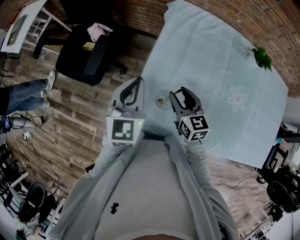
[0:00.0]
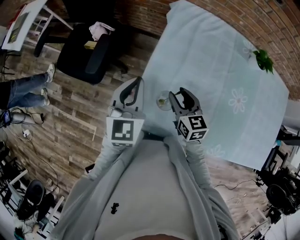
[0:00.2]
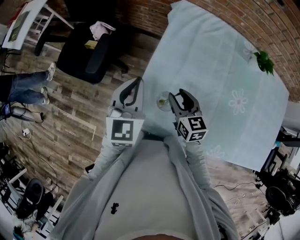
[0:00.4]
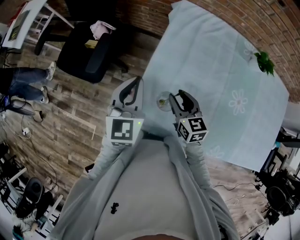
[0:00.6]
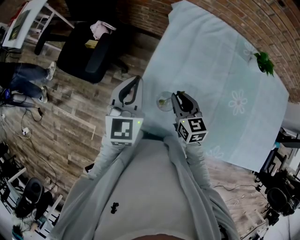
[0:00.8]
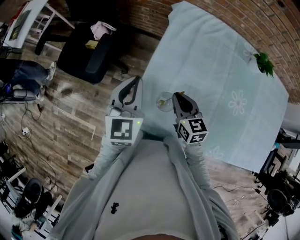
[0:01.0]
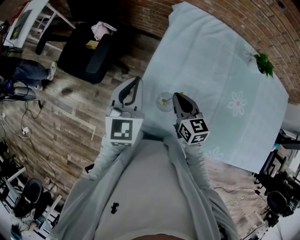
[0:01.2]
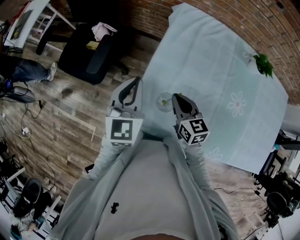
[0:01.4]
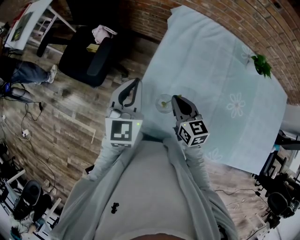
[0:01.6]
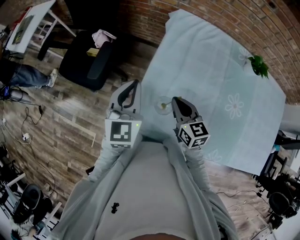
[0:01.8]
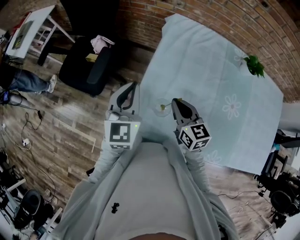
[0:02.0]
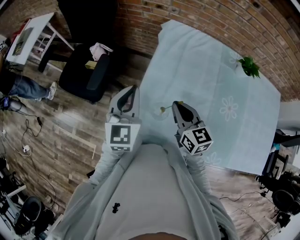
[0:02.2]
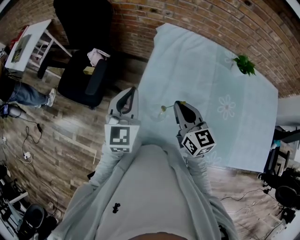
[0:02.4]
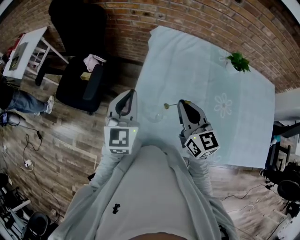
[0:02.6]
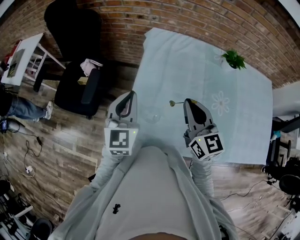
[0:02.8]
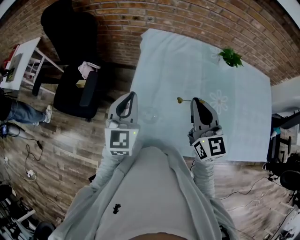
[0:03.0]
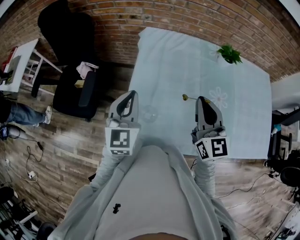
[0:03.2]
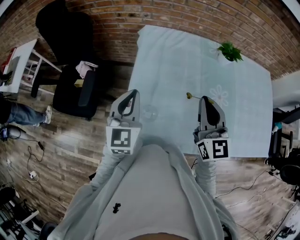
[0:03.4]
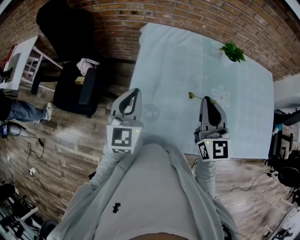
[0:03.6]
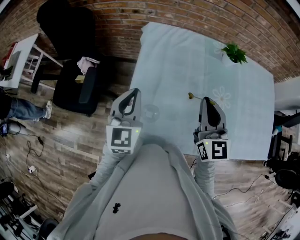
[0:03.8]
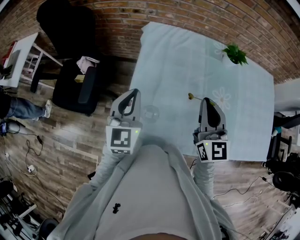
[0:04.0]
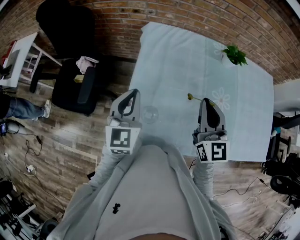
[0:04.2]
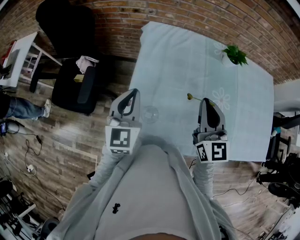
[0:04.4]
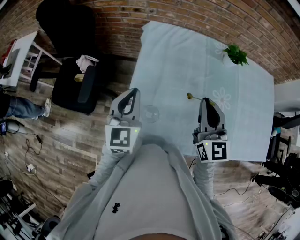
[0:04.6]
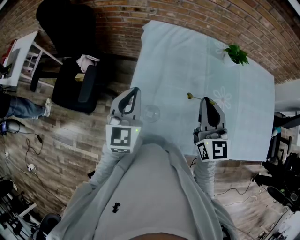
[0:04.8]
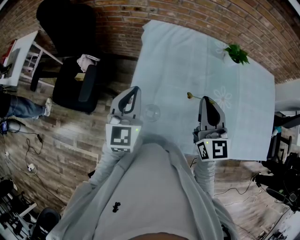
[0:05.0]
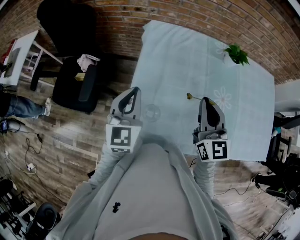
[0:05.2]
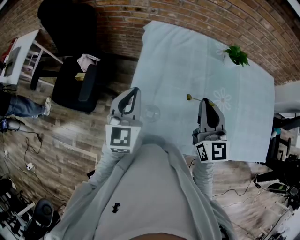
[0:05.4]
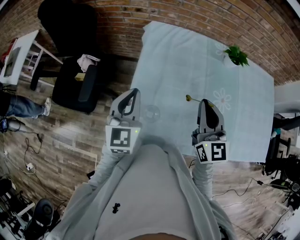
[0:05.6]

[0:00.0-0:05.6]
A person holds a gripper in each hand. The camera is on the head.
0:00.0 to 0:01.4: The right gripper closes.
0:01.4 to 0:02.8: The left gripper ends up approximately 5 cm from where it was. The right gripper moves upward and to the right, approximately 20 cm, and changes its angle by some 30 degrees.
0:02.8 to 0:04.2: The right gripper shifts some 5 cm to the right.
0:04.2 to 0:05.6: Neither gripper changes place.

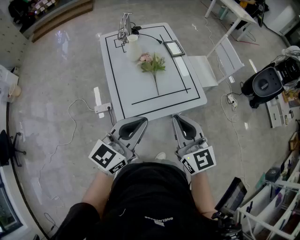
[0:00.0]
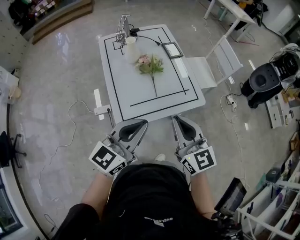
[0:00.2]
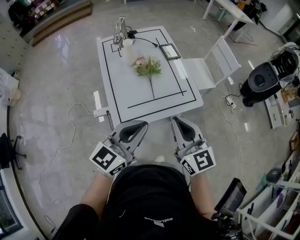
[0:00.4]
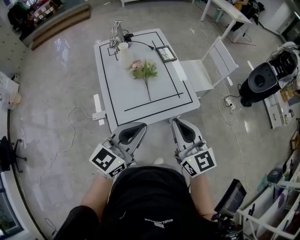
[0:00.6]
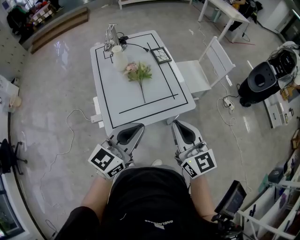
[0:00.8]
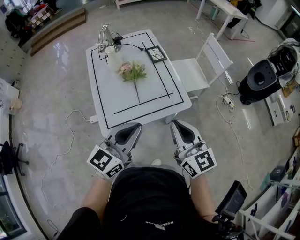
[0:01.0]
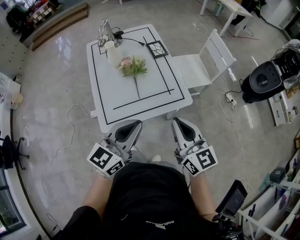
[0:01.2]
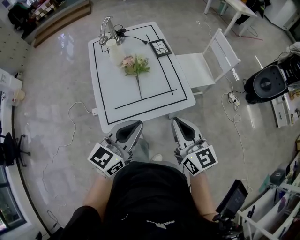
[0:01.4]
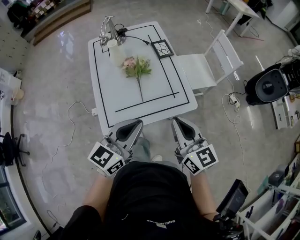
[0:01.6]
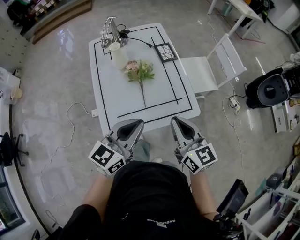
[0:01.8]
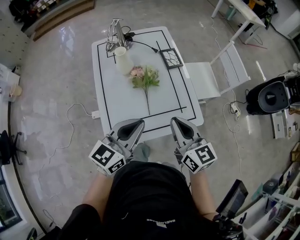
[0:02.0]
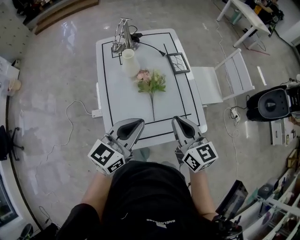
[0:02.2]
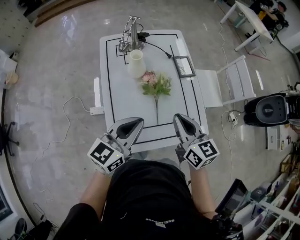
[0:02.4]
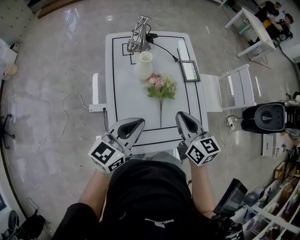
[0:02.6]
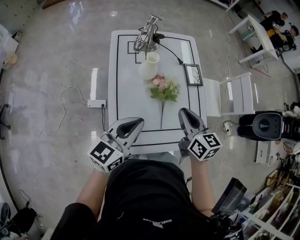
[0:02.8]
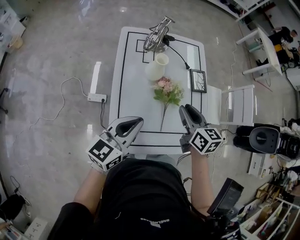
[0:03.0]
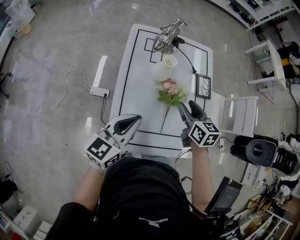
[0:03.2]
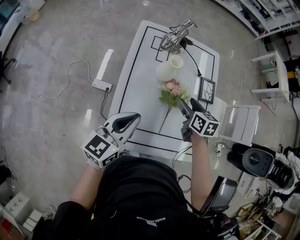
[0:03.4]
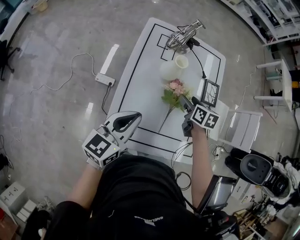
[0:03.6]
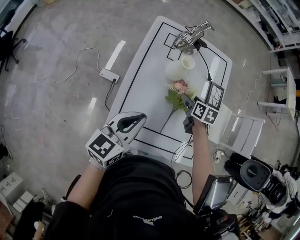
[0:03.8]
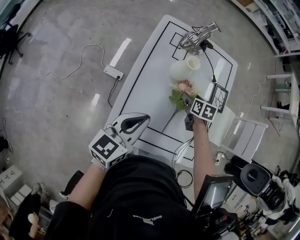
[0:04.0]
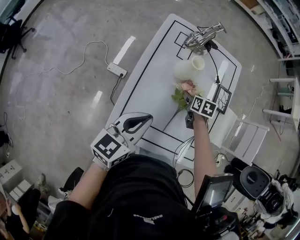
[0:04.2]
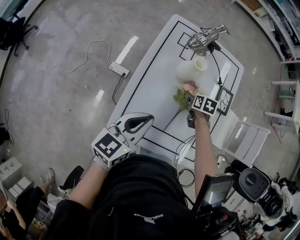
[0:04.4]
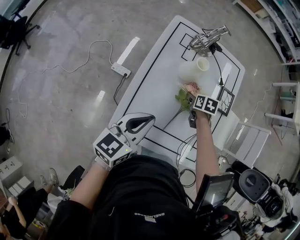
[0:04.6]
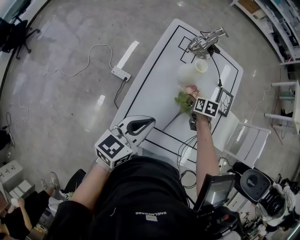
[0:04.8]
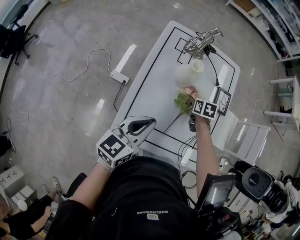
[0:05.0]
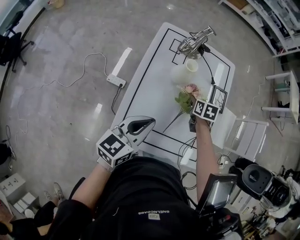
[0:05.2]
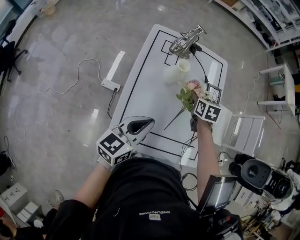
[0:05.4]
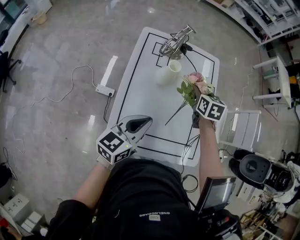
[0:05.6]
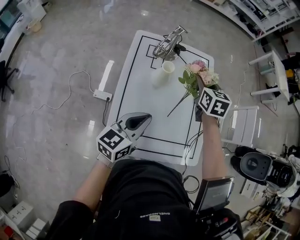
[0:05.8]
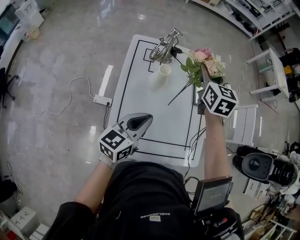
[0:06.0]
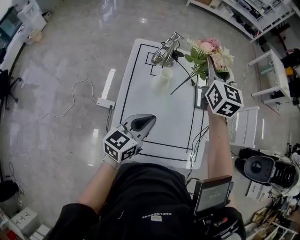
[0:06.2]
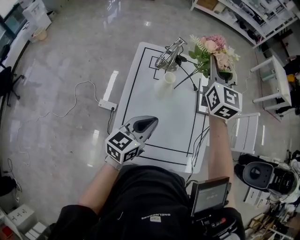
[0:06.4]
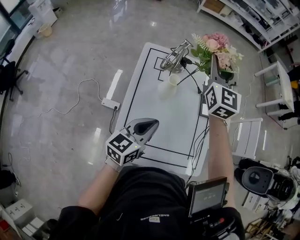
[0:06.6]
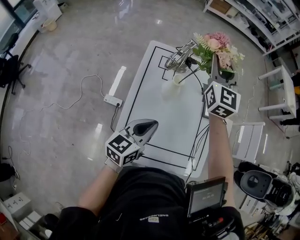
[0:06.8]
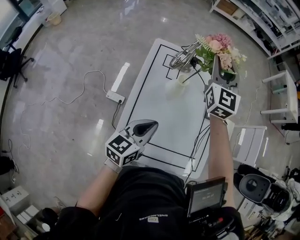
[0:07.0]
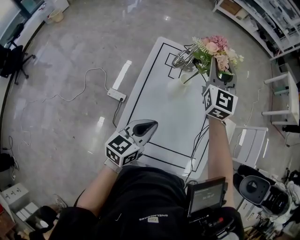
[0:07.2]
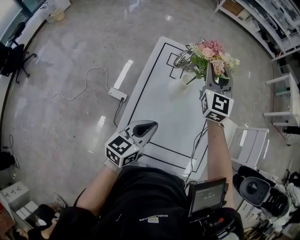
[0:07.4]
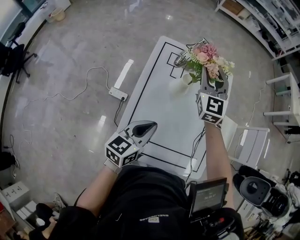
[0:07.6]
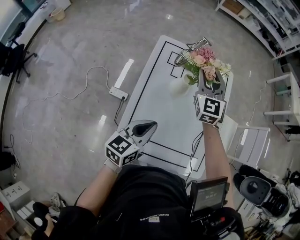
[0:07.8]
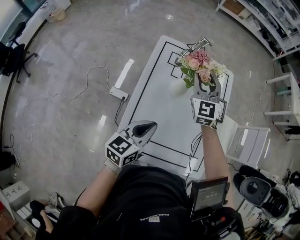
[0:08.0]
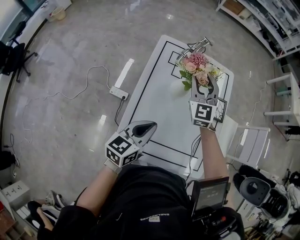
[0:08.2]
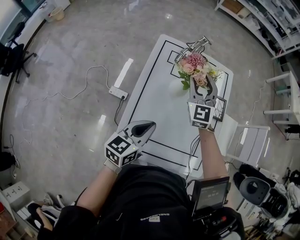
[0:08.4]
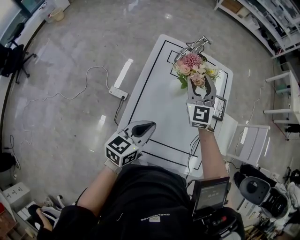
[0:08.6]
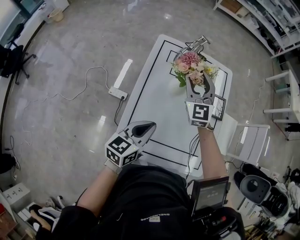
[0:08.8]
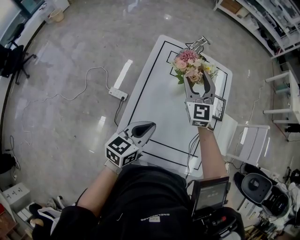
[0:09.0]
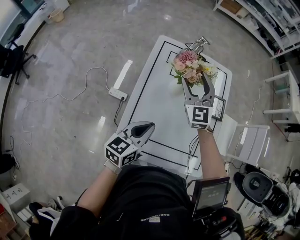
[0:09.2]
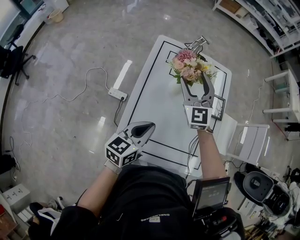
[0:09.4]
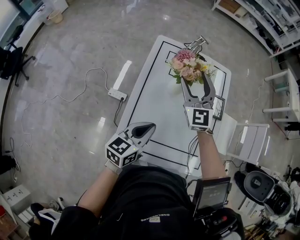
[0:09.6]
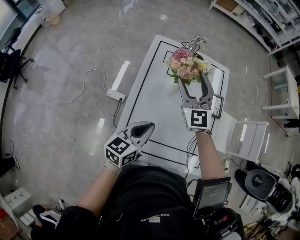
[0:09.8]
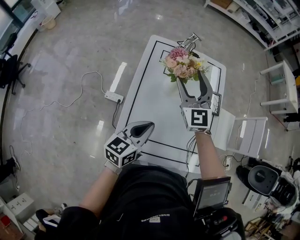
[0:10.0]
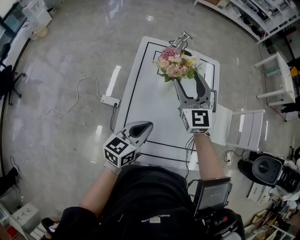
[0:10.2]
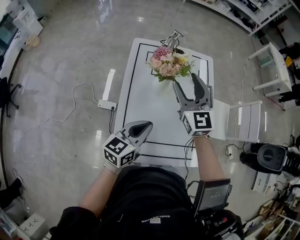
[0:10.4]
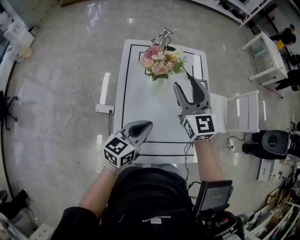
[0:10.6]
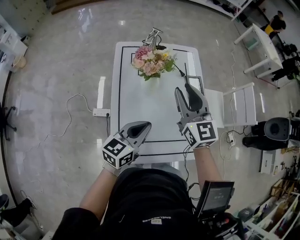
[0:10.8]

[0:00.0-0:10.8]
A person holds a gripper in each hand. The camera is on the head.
0:00.0 to 0:01.6: Both grippers travel together to the right and forward, approximately 15 cm.
0:01.6 to 0:03.0: The right gripper is displaced forward and to the left by some 30 cm, and swivels approximately 20 degrees. The left gripper is displaced to the left and forward by about 25 cm.
0:03.0 to 0:04.6: The right gripper goes approximately 25 cm downward and forward, tips its fingers downward by roughly 40 degrees, and opens up.
0:04.6 to 0:06.2: The right gripper travels upward by approximately 40 cm, and angles its fingers upward, by about 50 degrees. Meanwhile the left gripper shifts roughly 5 cm forward.
0:06.2 to 0:07.8: The right gripper heads downward and to the left, covering some 15 cm; the left gripper shifts by approximately 5 cm.
0:07.8 to 0:09.2: The right gripper moves about 5 cm, and opens up.
0:09.2 to 0:10.8: The right gripper shifts some 15 cm backward, to the right and upward, changes its angle by roughly 20 degrees, and closes its fingers.

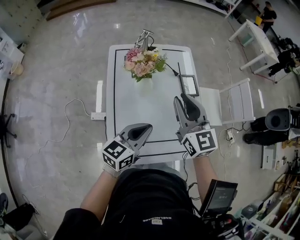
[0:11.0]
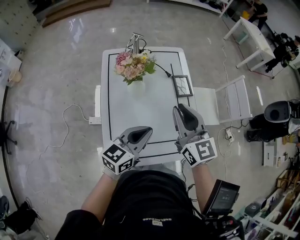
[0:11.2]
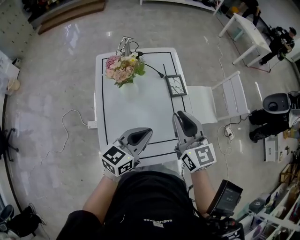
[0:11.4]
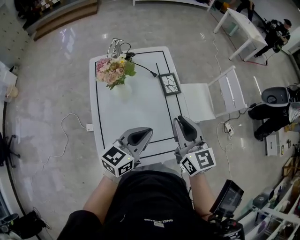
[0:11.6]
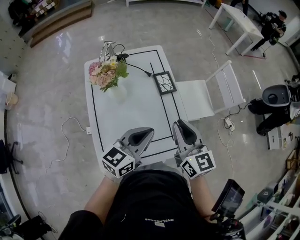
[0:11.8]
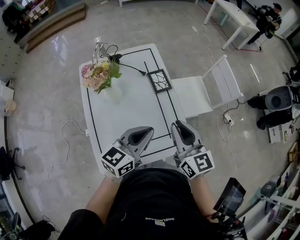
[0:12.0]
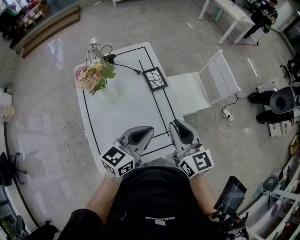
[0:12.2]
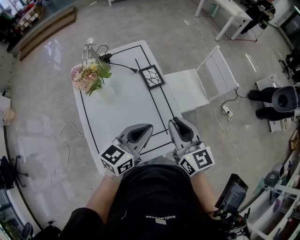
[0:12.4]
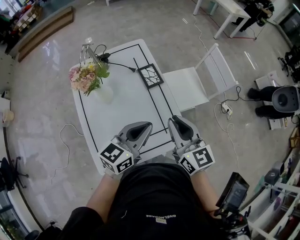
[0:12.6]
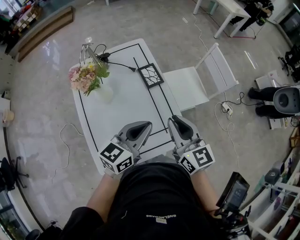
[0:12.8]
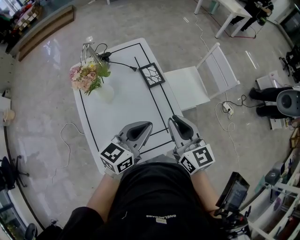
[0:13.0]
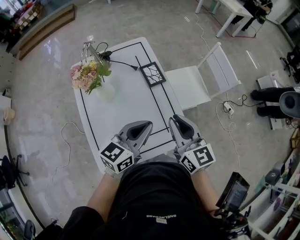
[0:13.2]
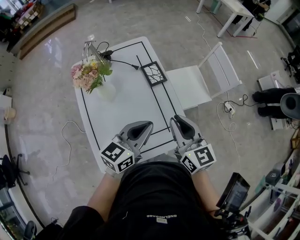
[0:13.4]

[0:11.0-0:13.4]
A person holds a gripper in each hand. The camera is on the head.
0:11.0 to 0:12.2: Both grippers travel together to the right, about 15 cm.
0:12.2 to 0:13.4: Both grippers stay put.

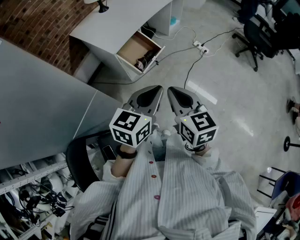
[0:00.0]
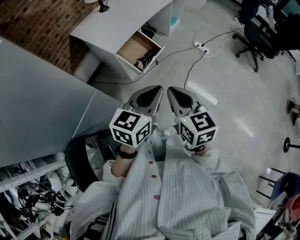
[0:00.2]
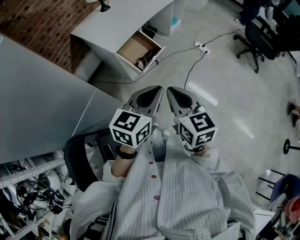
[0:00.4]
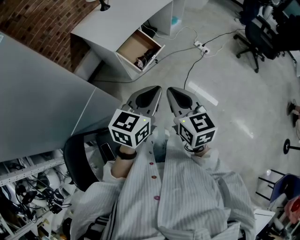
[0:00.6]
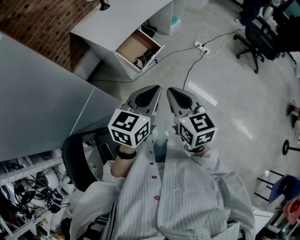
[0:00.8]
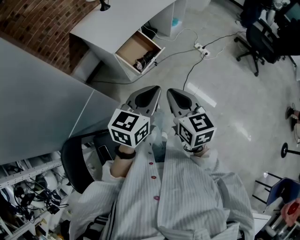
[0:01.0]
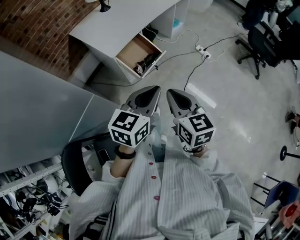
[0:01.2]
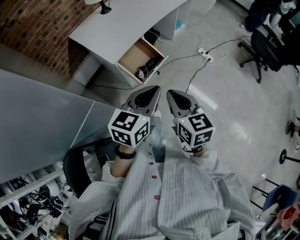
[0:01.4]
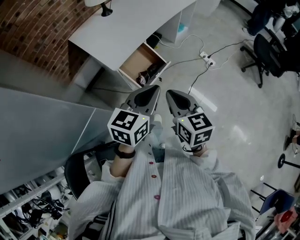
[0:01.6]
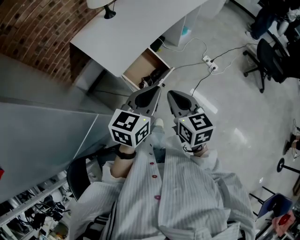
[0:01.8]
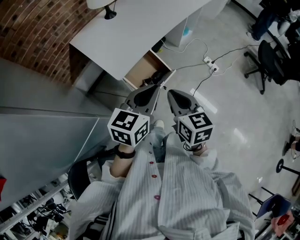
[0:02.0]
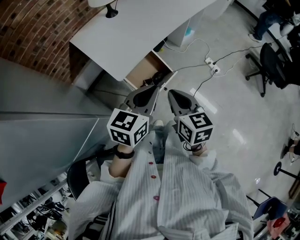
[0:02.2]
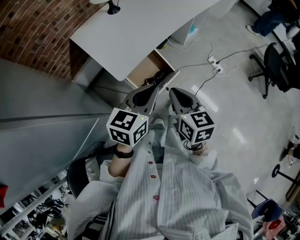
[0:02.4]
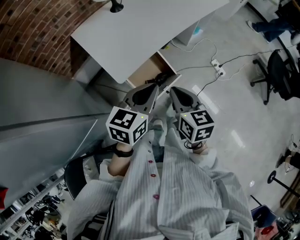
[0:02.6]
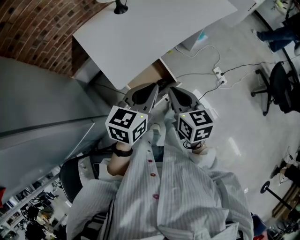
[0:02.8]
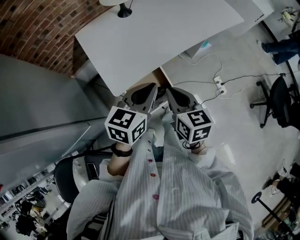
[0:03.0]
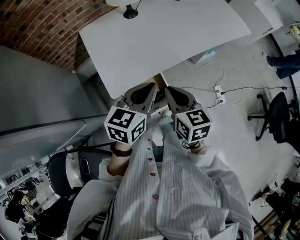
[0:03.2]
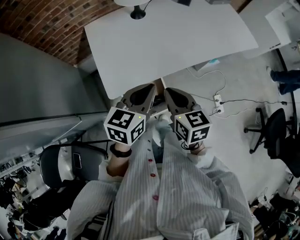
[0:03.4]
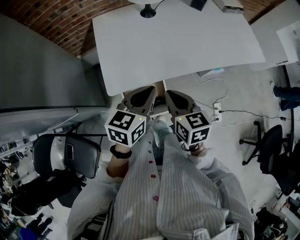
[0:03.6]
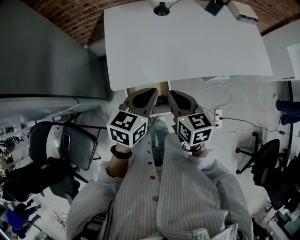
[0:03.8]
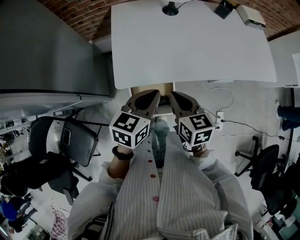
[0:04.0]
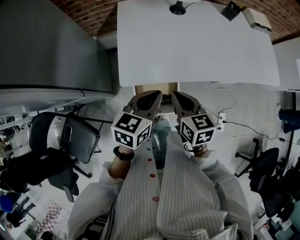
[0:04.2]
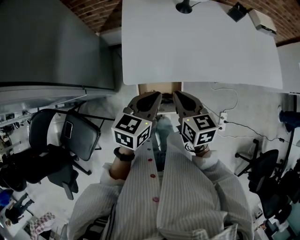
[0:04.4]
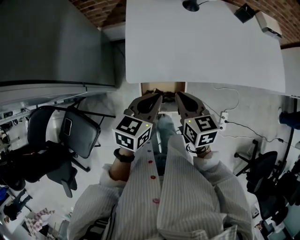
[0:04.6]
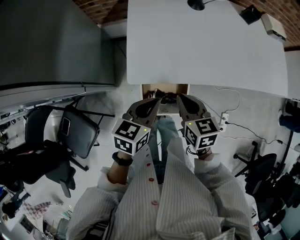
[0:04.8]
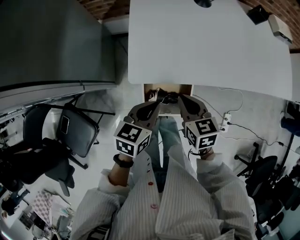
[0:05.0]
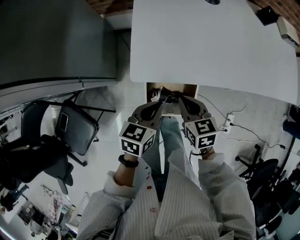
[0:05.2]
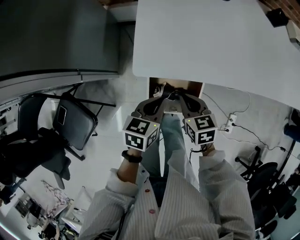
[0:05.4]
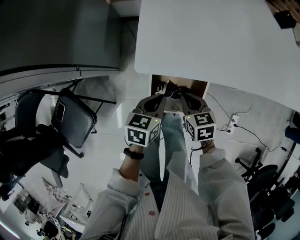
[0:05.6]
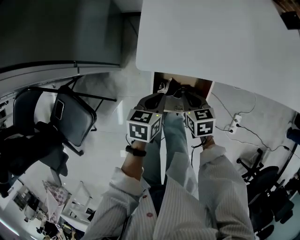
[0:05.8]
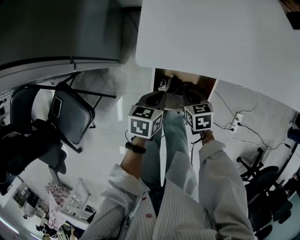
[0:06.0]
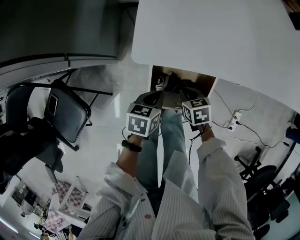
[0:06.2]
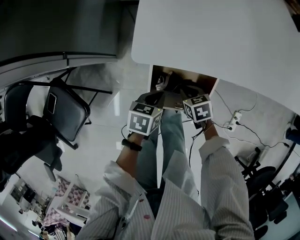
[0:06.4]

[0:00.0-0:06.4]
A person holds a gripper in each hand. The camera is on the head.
0:00.0 to 0:01.6: Both grippers travel together forward, about 15 cm.
0:01.6 to 0:03.2: The grippers both shift forward by some 30 cm. The left gripper turns by roughly 20 degrees. The right gripper turns by about 20 degrees.
0:03.2 to 0:04.8: The left gripper is displaced downward and to the left by about 15 cm, and changes its angle by about 30 degrees. The right gripper travels downward, to the left and forward by some 15 cm, and rotates some 30 degrees.
0:04.8 to 0:06.4: Both grippers travel together downward, roughly 30 cm. The right gripper turns by about 30 degrees, while the left gripper rotates roughly 30 degrees.
